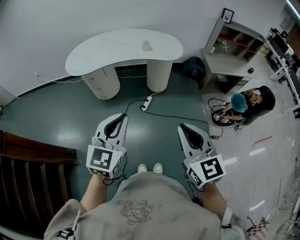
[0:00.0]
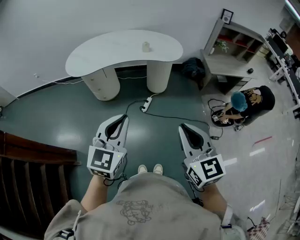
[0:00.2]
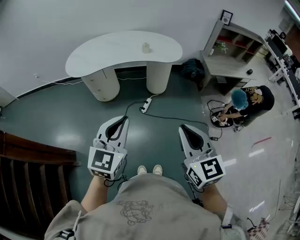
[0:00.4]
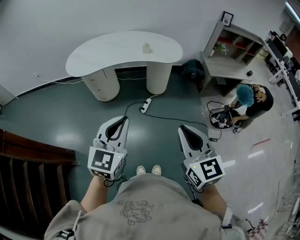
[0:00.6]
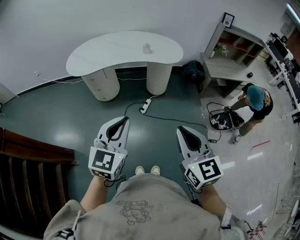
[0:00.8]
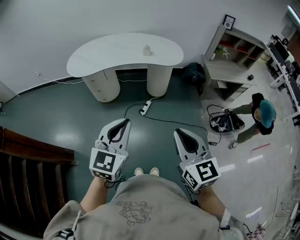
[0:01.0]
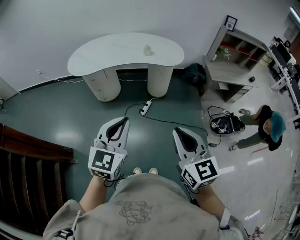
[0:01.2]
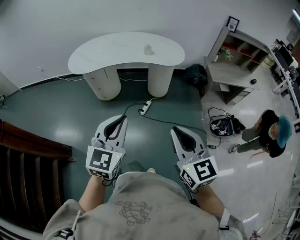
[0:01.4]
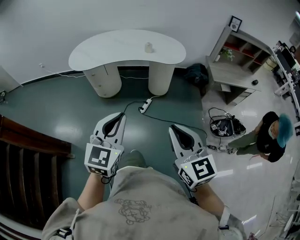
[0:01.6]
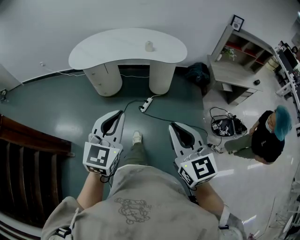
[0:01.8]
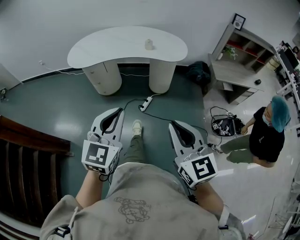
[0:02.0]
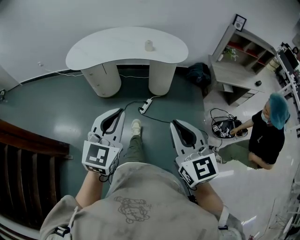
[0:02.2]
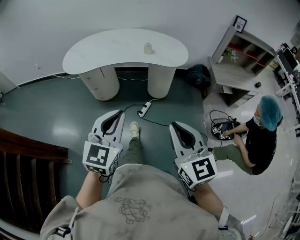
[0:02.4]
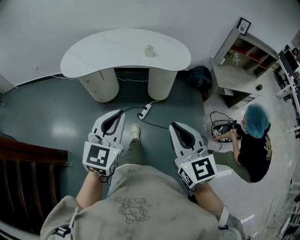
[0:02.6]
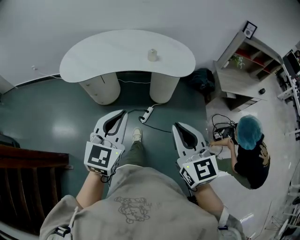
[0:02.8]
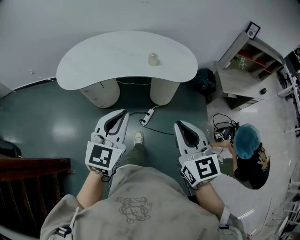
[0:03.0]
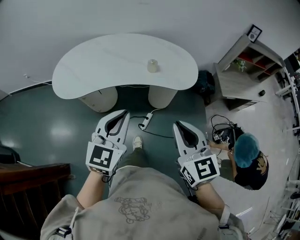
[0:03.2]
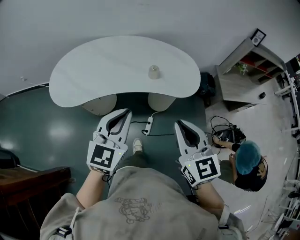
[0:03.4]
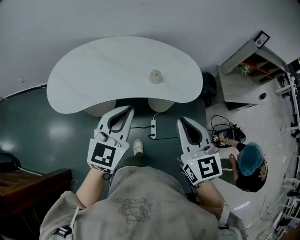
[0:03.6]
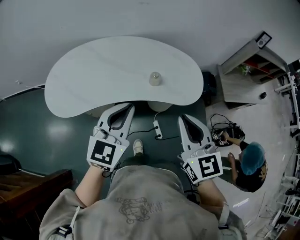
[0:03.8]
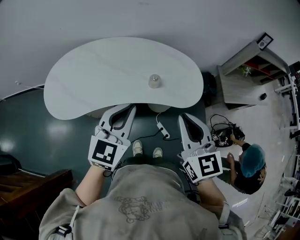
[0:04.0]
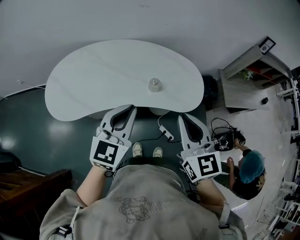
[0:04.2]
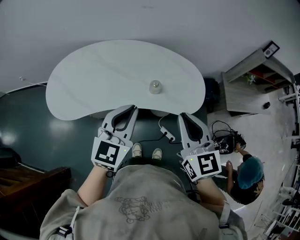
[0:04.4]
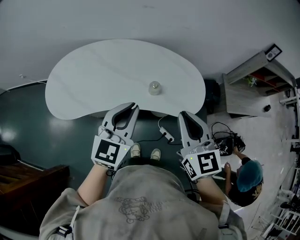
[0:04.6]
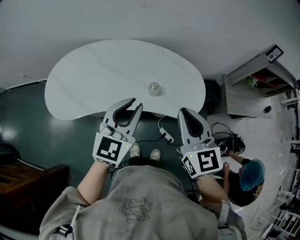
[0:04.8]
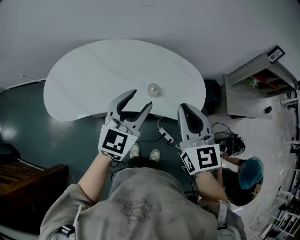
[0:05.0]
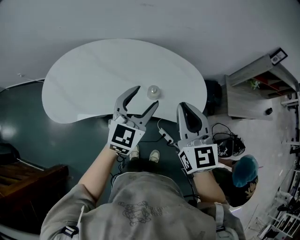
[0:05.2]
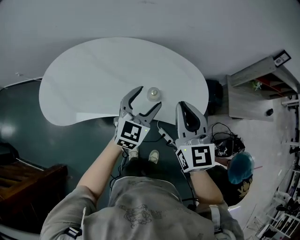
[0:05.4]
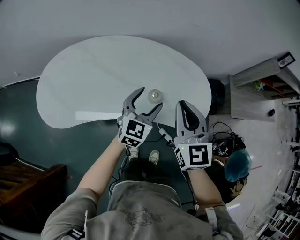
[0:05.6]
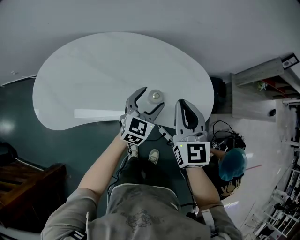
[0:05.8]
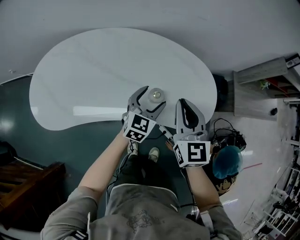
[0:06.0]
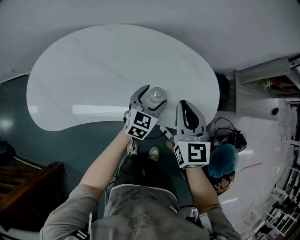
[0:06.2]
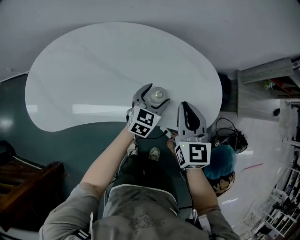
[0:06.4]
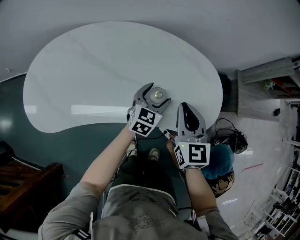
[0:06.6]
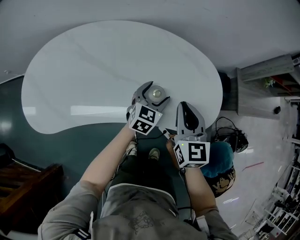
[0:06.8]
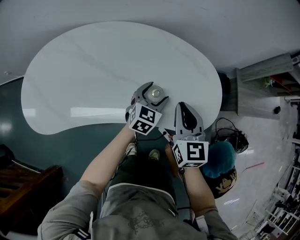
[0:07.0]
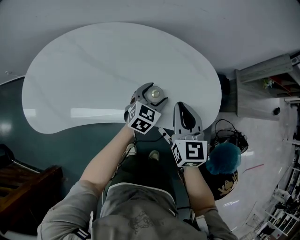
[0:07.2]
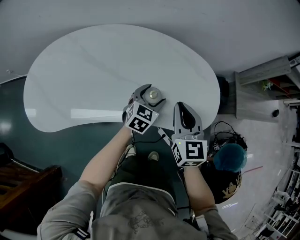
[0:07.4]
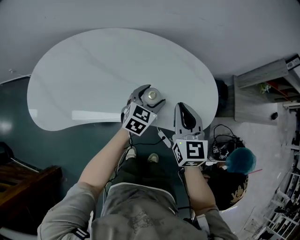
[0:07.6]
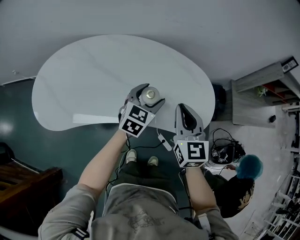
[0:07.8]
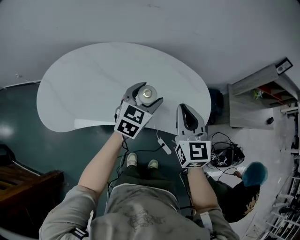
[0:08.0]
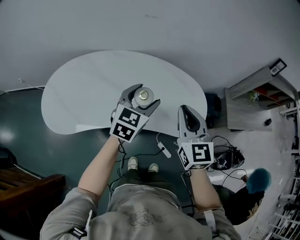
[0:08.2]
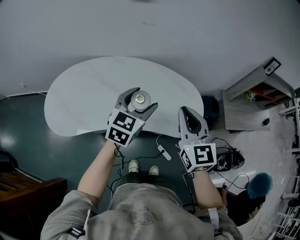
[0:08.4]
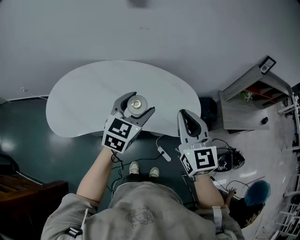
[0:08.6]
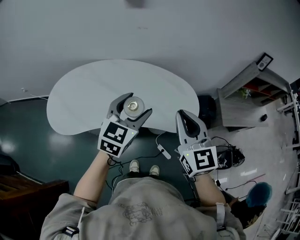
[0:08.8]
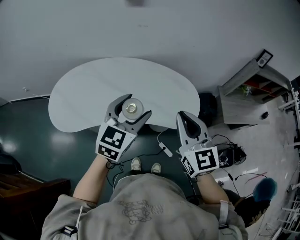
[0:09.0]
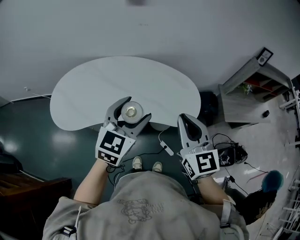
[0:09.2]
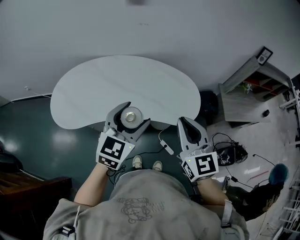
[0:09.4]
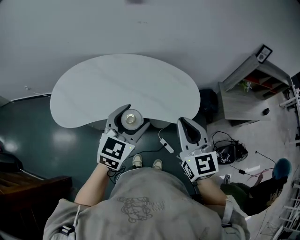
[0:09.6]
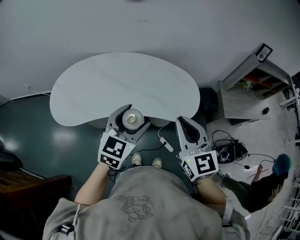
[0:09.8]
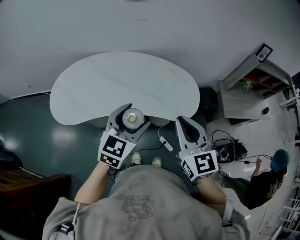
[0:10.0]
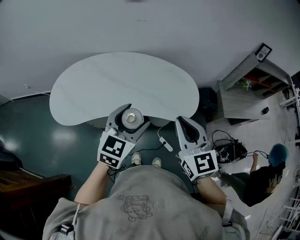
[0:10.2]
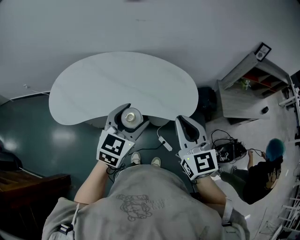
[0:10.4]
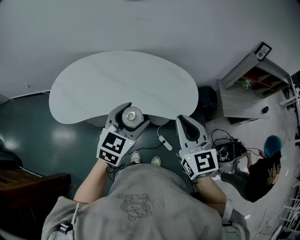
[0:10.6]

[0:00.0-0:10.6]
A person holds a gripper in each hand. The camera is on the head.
0:00.0 to 0:01.6: The grippers stay close to where they were, moving slightly.
0:01.6 to 0:03.0: Both grippers move forward, about 30 cm.
0:03.0 to 0:04.6: Both grippers travel together forward, approximately 30 cm.
0:04.6 to 0:06.0: The left gripper shifts some 30 cm downward and forward, and opens its fingers, while the right gripper moves forward and downward, about 20 cm.
0:06.0 to 0:07.6: The right gripper travels downward by some 5 cm.
0:07.6 to 0:09.0: Both grippers travel together upward and backward, approximately 30 cm.
0:09.0 to 0:10.6: The two grippers go approximately 5 cm backward.

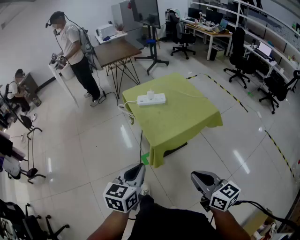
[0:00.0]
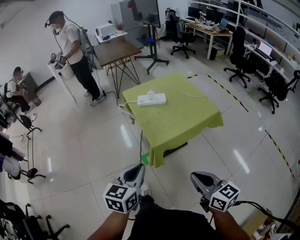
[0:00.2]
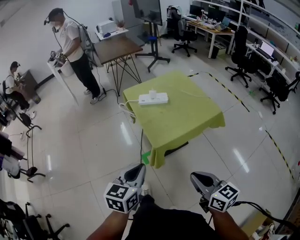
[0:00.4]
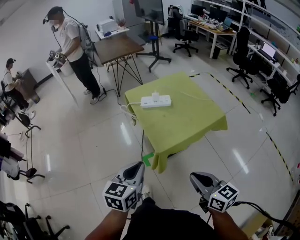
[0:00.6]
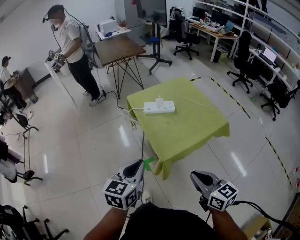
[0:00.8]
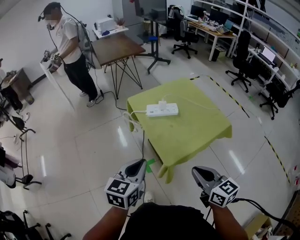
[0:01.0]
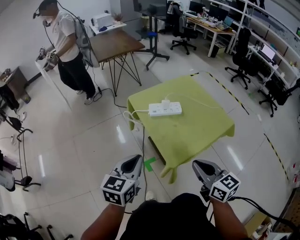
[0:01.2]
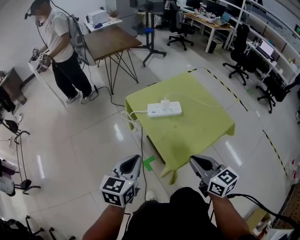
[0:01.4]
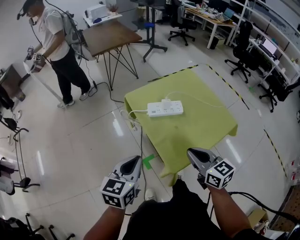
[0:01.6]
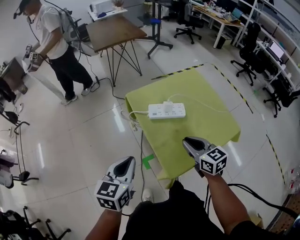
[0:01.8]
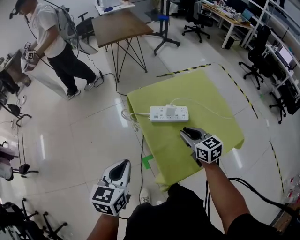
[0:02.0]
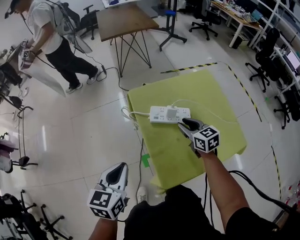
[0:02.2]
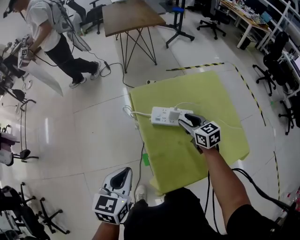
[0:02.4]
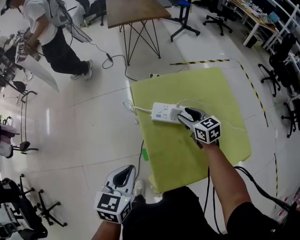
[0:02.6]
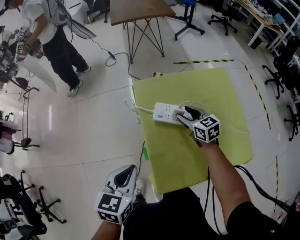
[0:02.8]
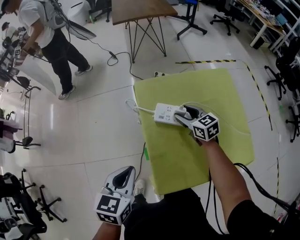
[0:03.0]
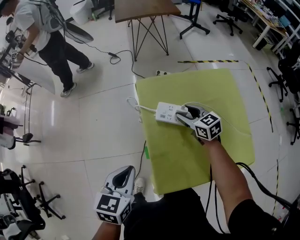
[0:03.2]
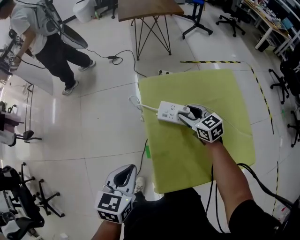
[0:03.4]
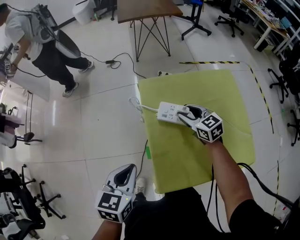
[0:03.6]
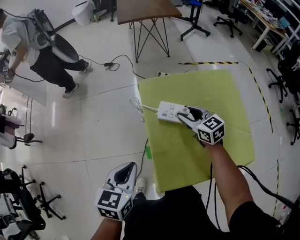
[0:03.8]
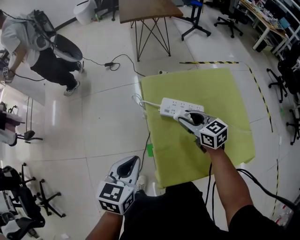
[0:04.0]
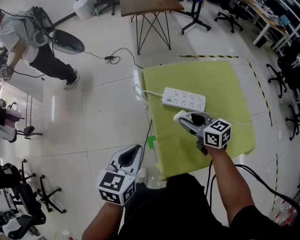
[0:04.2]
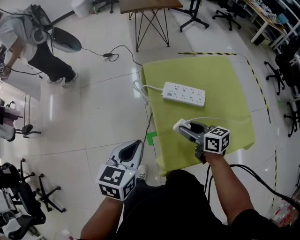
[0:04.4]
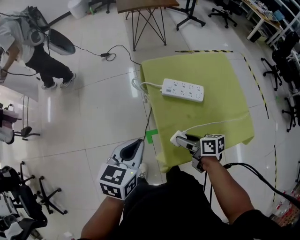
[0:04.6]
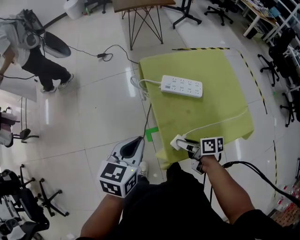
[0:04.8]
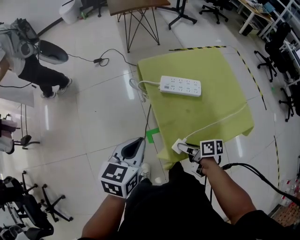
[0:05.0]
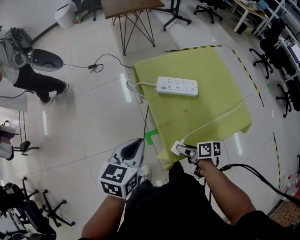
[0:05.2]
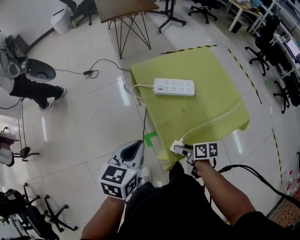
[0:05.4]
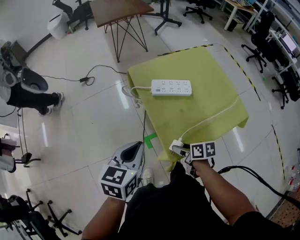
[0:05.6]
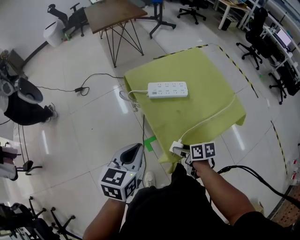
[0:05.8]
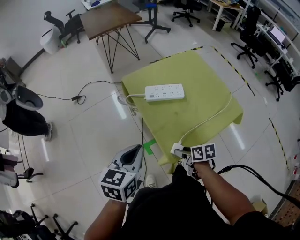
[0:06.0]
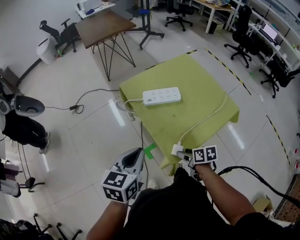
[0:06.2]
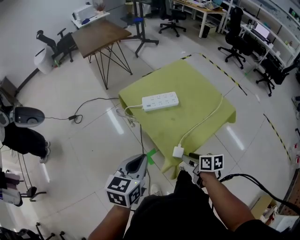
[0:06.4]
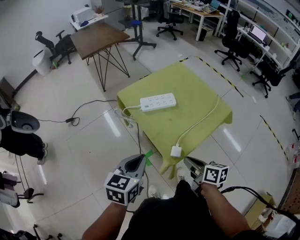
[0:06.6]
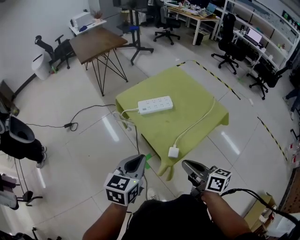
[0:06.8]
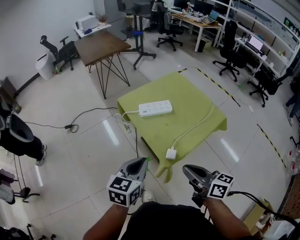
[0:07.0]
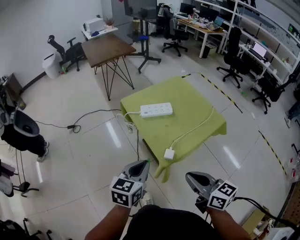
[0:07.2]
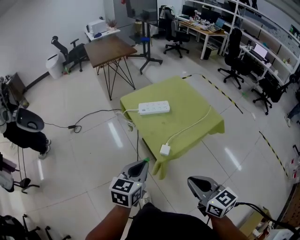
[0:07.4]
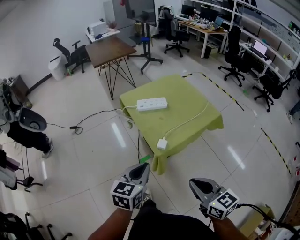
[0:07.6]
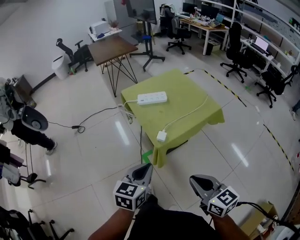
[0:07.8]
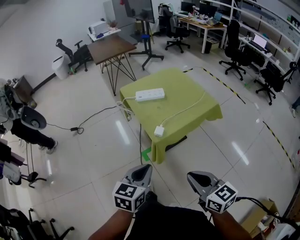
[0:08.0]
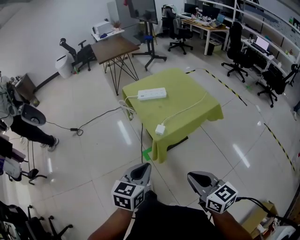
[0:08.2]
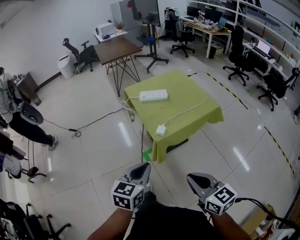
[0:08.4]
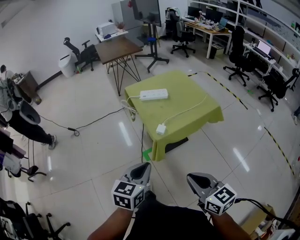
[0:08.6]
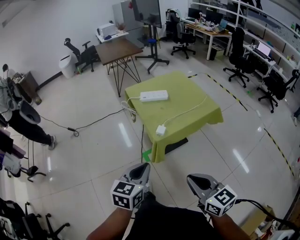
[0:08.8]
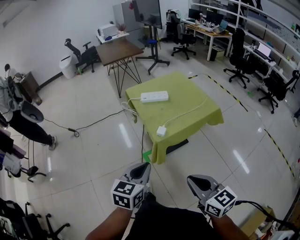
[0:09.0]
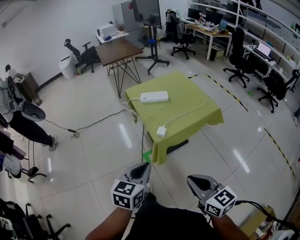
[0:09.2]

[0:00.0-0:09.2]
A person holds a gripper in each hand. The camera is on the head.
0:00.0 to 0:01.6: The left gripper is displaced forward and to the left by some 30 cm; the right gripper is displaced forward by some 35 cm.
0:01.6 to 0:03.0: The right gripper moves forward and downward, some 35 cm, rotates roughly 30 degrees, and opens up. Meanwhile the left gripper heads forward and downward, covering roughly 10 cm, and changes its angle by about 20 degrees.
0:03.0 to 0:04.6: The right gripper is displaced backward and to the left by roughly 25 cm, and turns by roughly 40 degrees.
0:04.6 to 0:06.2: The right gripper heads backward, covering approximately 10 cm, swivels approximately 30 degrees, and opens.
0:06.2 to 0:07.6: The right gripper moves upward and backward, some 35 cm, turns by roughly 50 degrees, and closes up; the left gripper heads backward and to the right, covering roughly 20 cm.
0:07.6 to 0:09.2: Both grippers move backward, approximately 10 cm.

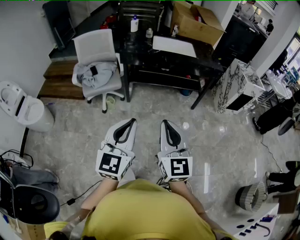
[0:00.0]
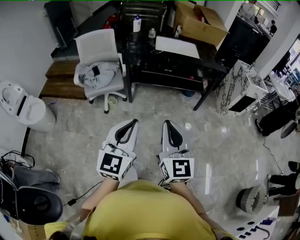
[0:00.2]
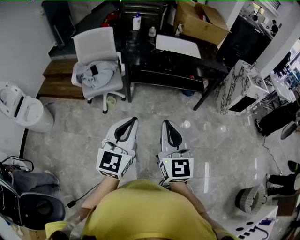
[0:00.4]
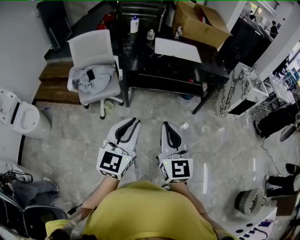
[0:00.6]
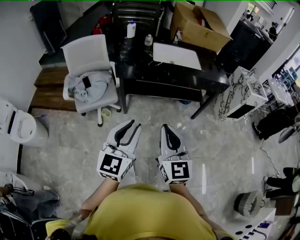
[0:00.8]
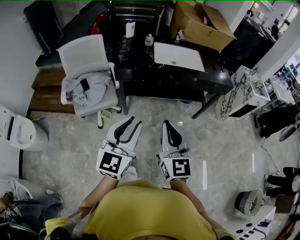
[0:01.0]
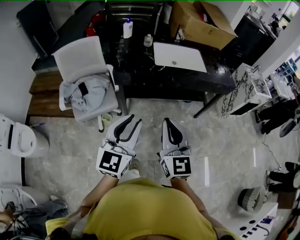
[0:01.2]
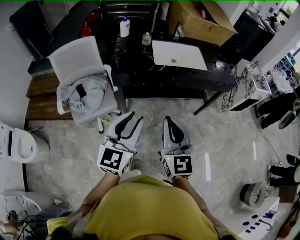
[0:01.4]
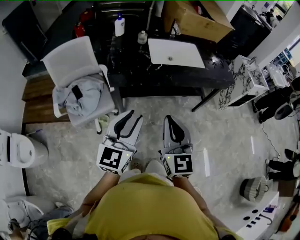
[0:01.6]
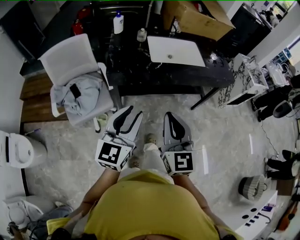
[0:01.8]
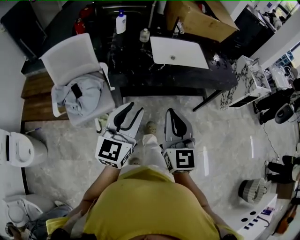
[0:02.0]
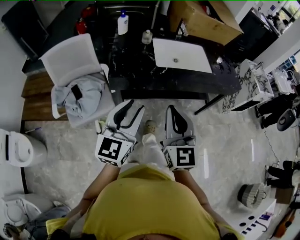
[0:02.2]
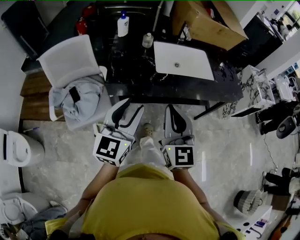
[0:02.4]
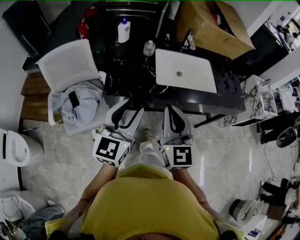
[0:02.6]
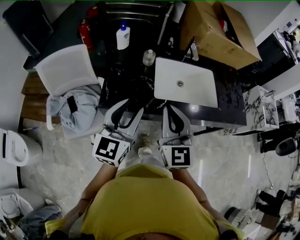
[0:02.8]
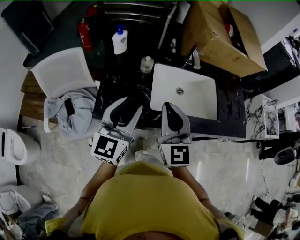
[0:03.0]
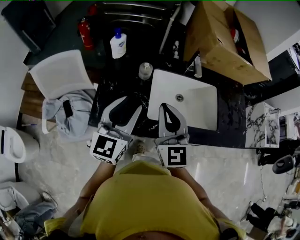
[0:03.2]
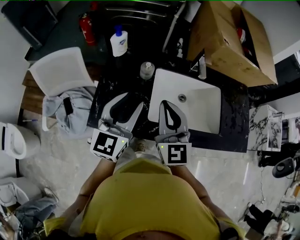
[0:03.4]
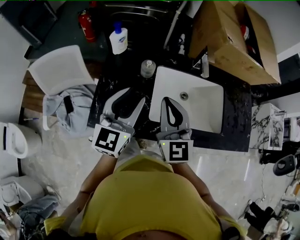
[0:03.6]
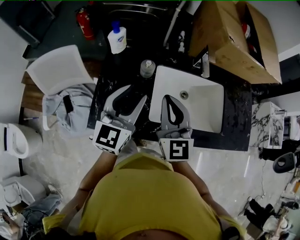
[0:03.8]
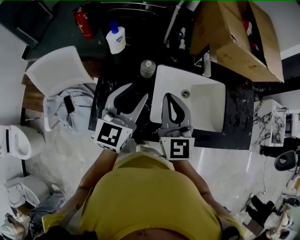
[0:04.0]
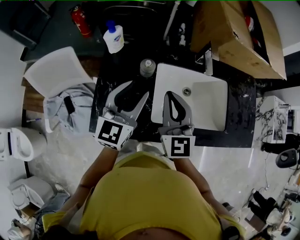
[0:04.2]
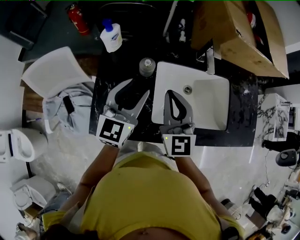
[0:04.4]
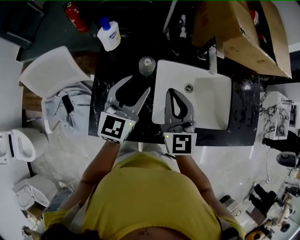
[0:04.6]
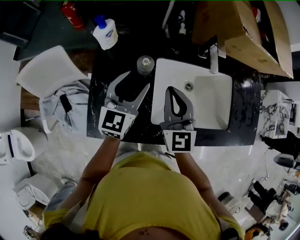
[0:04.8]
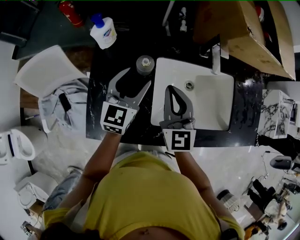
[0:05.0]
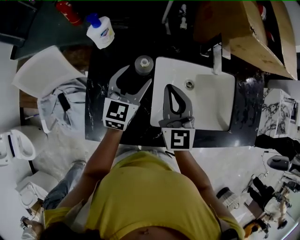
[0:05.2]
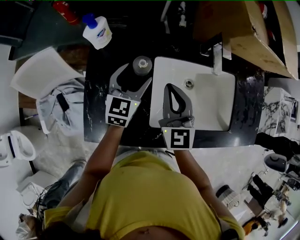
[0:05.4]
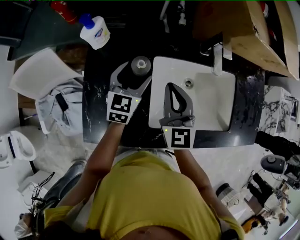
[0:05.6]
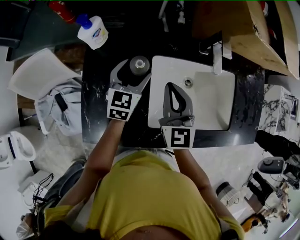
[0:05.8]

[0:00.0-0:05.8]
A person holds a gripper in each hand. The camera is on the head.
0:00.0 to 0:01.4: Both grippers travel together forward, roughly 35 cm.
0:01.4 to 0:02.8: Both grippers travel together forward, some 35 cm.
0:02.8 to 0:04.4: The grippers both shift forward by about 25 cm.
0:04.4 to 0:05.8: The left gripper shifts roughly 20 cm downward and forward, and opens up. The right gripper heads downward and forward, covering some 10 cm.
